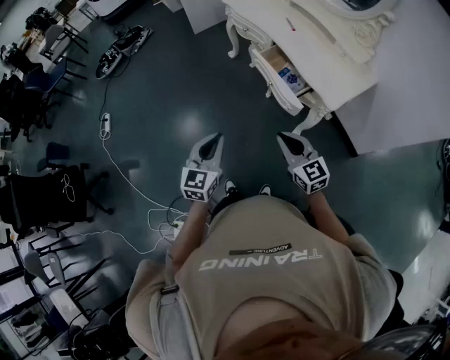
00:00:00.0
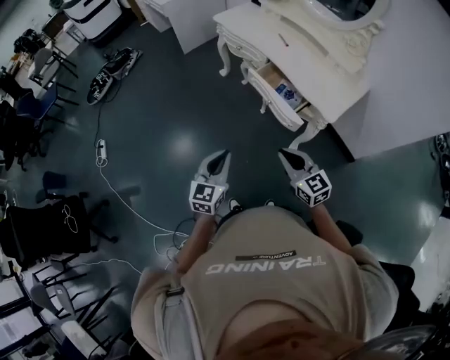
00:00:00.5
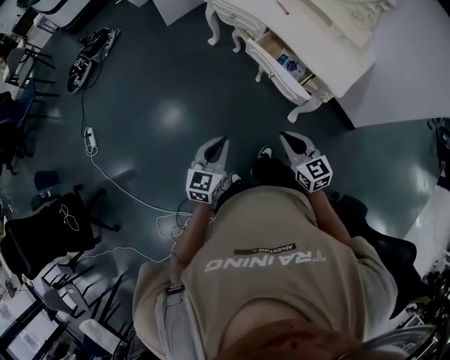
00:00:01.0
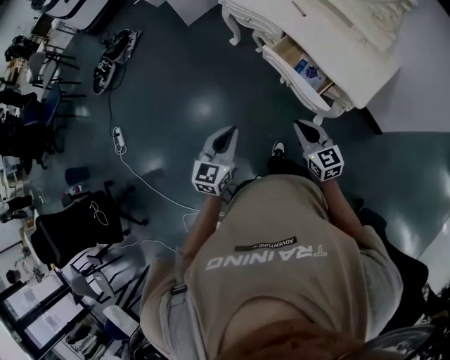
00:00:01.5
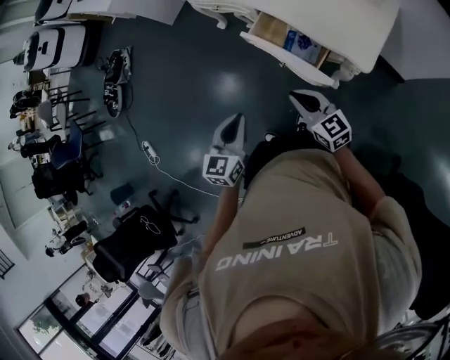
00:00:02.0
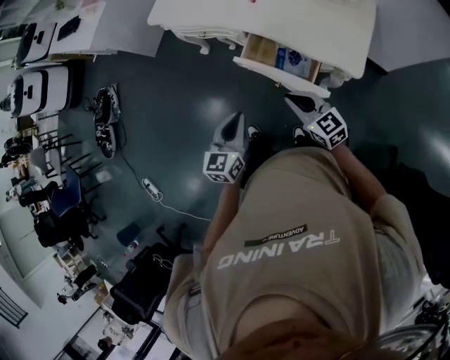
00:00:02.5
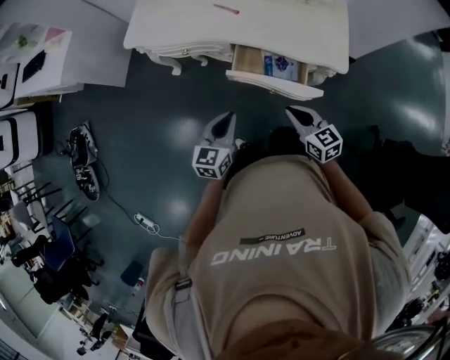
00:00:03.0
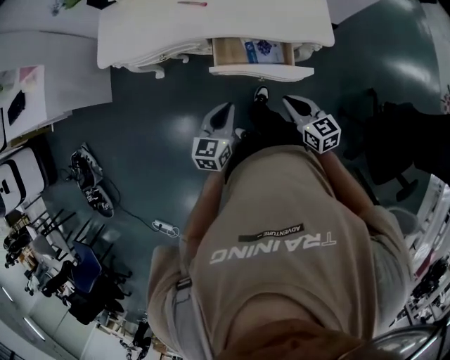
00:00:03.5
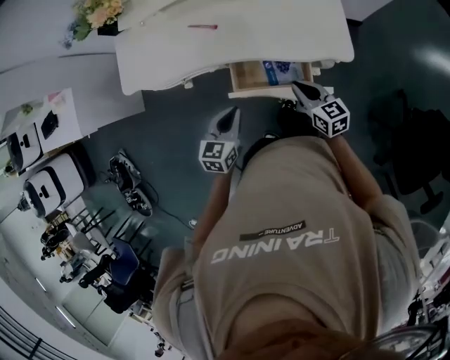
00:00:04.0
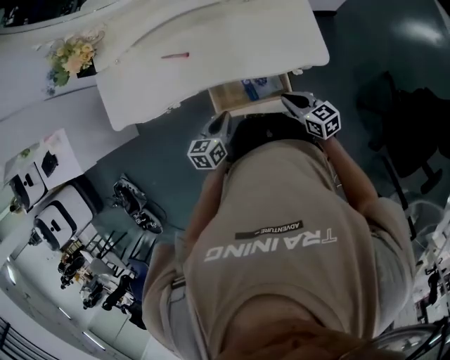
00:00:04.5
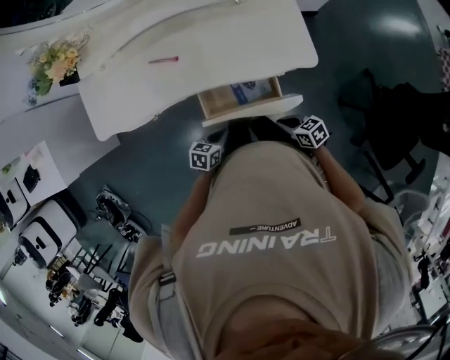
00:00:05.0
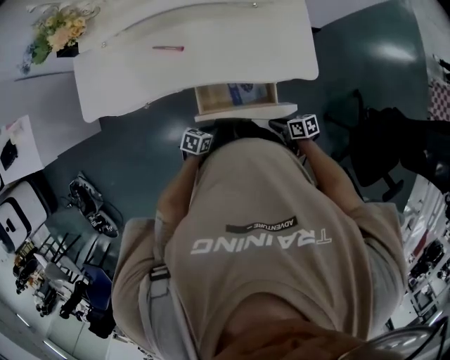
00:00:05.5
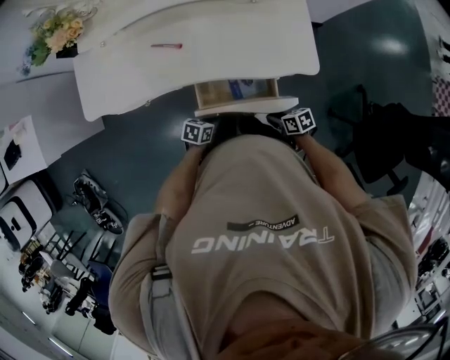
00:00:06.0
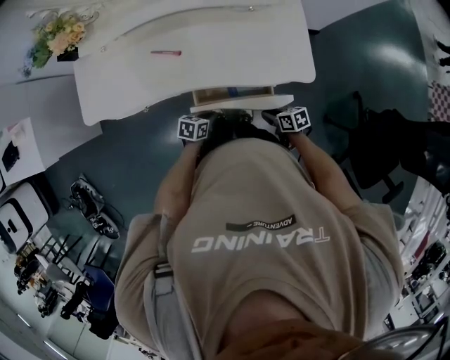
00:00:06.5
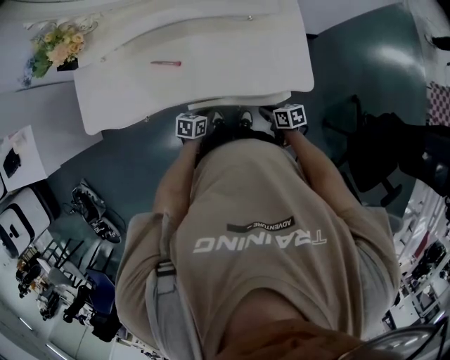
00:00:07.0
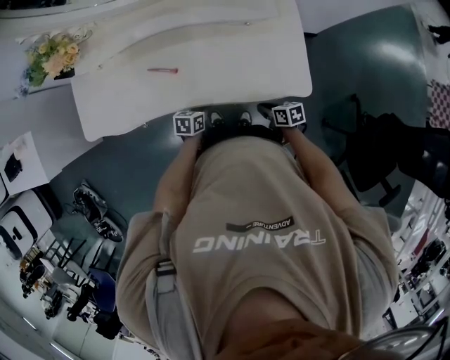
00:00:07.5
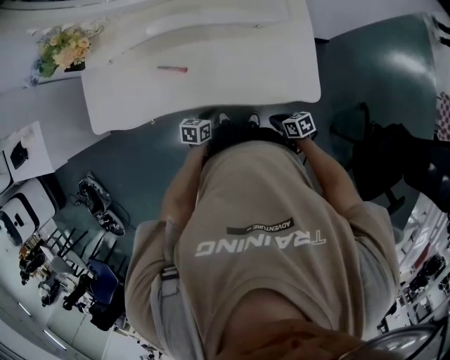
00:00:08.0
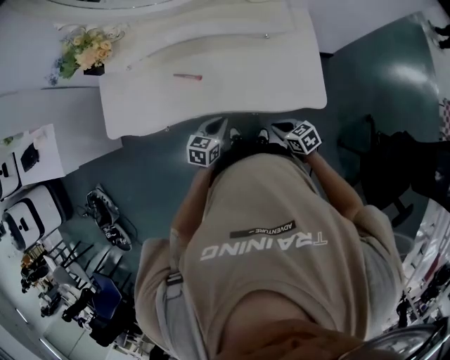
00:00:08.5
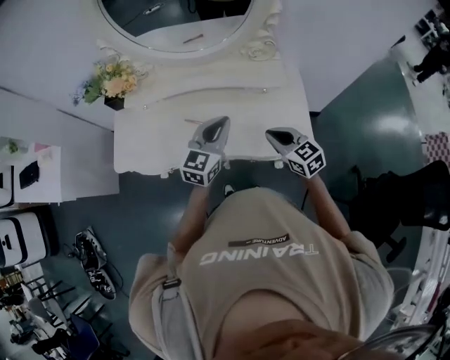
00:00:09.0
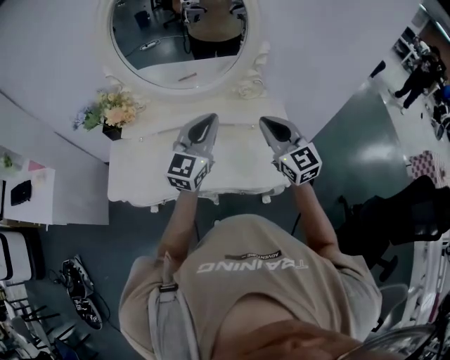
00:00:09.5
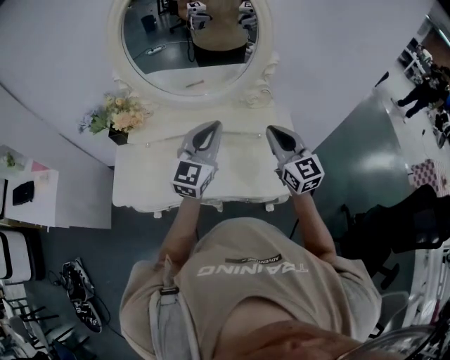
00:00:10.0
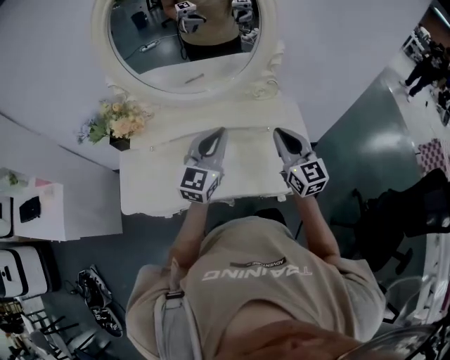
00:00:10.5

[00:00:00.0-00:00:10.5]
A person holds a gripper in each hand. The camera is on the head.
00:00:00.0 to 00:00:02.0: The left gripper moves forward, approximately 25 cm, and turns by about 20 degrees. The right gripper shifts roughly 25 cm forward and downward, and turns by some 20 degrees.
00:00:02.0 to 00:00:04.0: The right gripper moves about 20 cm, and rotates some 50 degrees. The left gripper moves some 30 cm, and changes its angle by approximately 40 degrees.
00:00:04.0 to 00:00:06.5: Both grippers travel together downward, roughly 15 cm. The left gripper swivels some 40 degrees. Meanwhile the right gripper turns by approximately 40 degrees.
00:00:06.5 to 00:00:08.5: The right gripper travels upward by some 10 cm, and rotates roughly 20 degrees. Meanwhile the left gripper travels upward by about 15 cm, and turns by some 20 degrees.
00:00:08.5 to 00:00:10.5: The grippers both shift upward and forward by roughly 40 cm. The right gripper tips its fingers upward by roughly 40 degrees; the left gripper angles its fingers upward, by some 40 degrees.

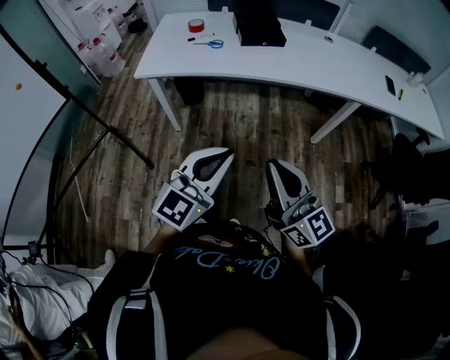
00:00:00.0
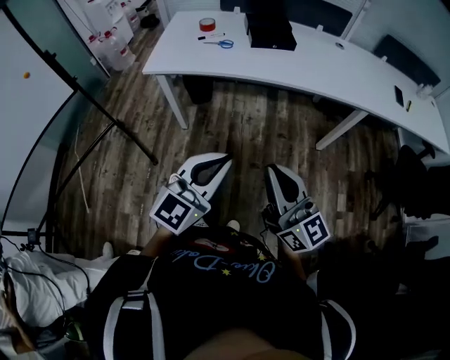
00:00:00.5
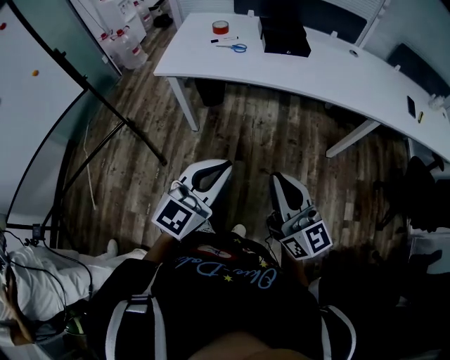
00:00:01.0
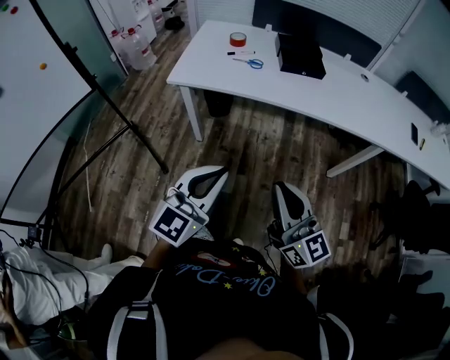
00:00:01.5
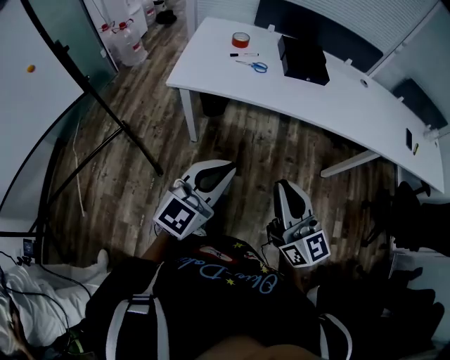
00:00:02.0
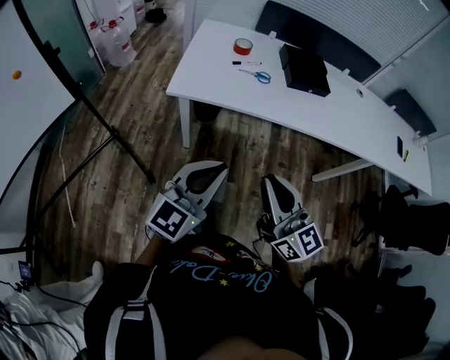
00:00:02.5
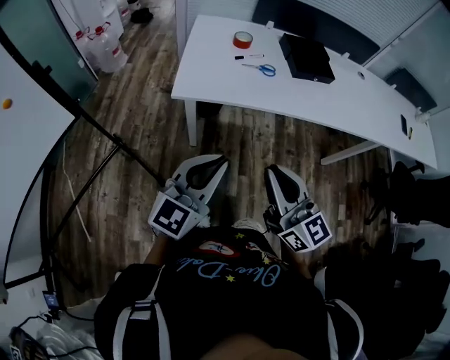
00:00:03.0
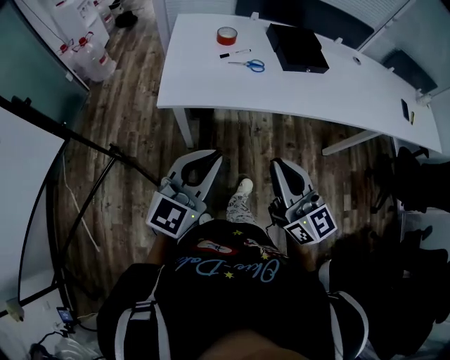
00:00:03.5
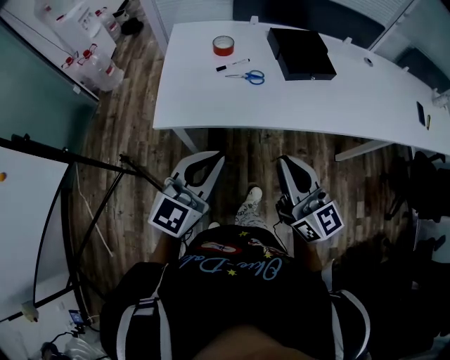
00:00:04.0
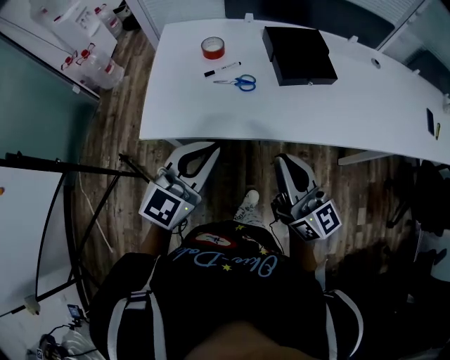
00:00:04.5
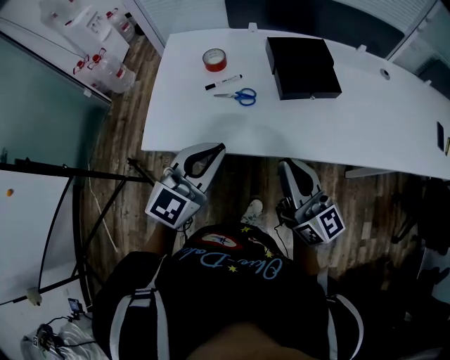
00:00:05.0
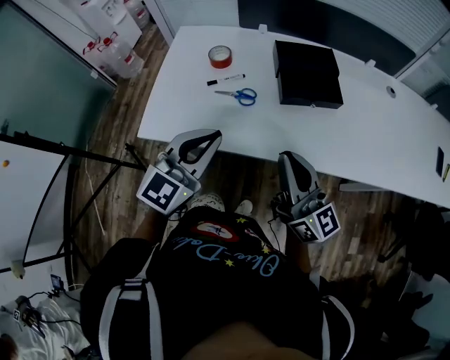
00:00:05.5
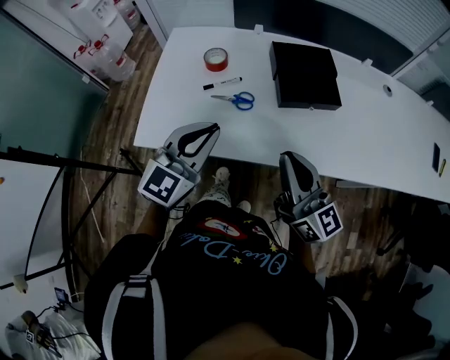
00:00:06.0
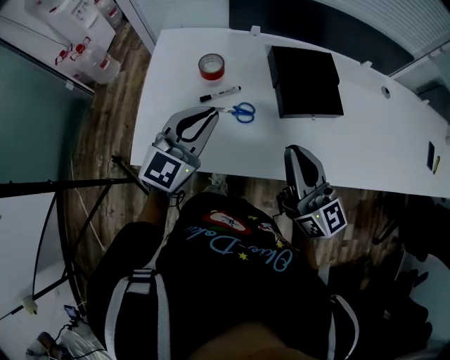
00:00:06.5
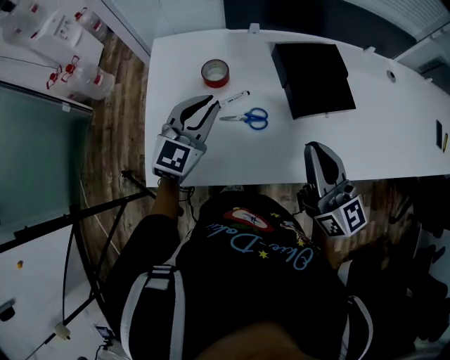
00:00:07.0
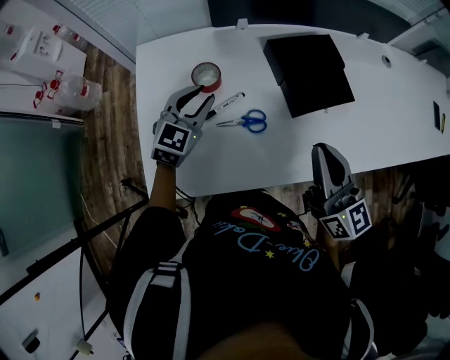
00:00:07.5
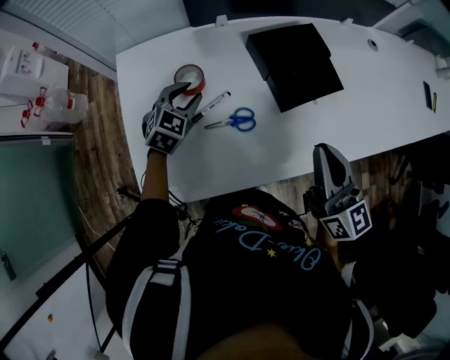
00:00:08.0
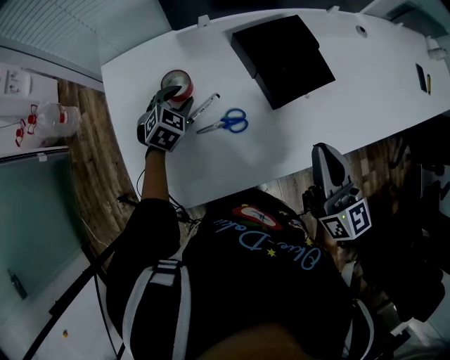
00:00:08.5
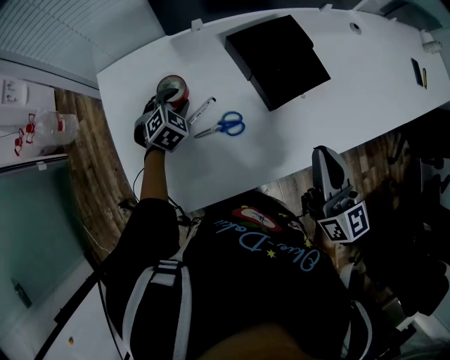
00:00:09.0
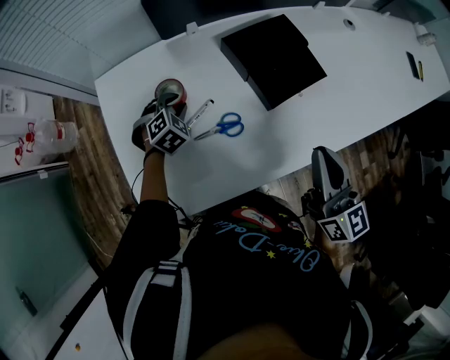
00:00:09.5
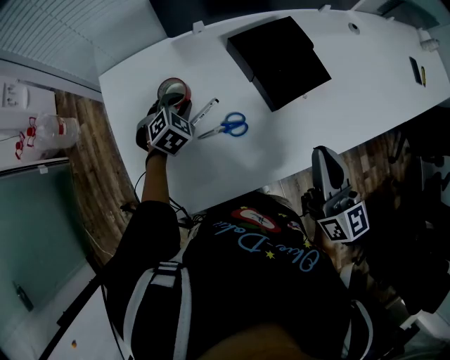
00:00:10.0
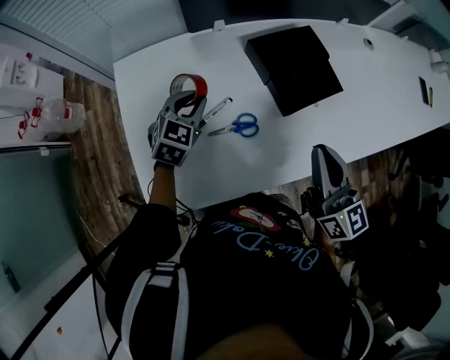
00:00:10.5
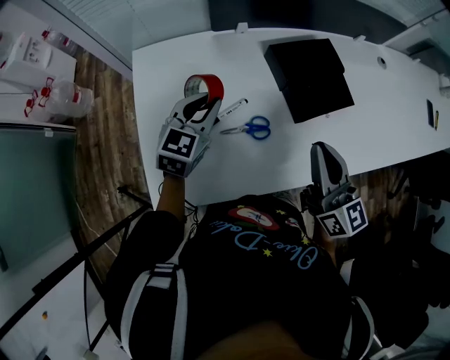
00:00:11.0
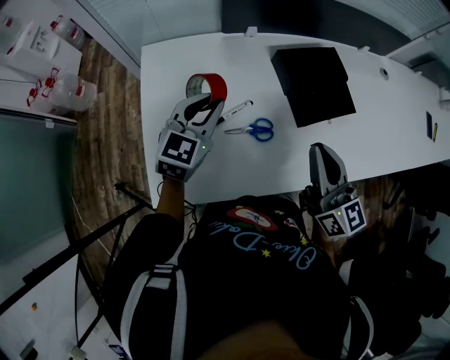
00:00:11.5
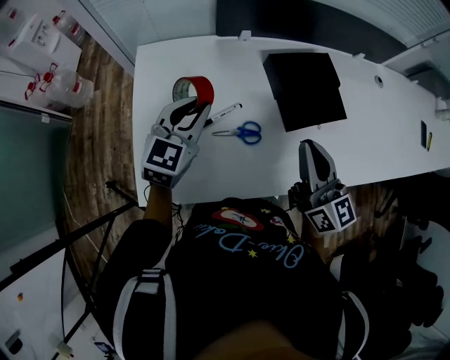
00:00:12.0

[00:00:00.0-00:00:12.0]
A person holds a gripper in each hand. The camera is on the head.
00:00:00.0 to 00:00:02.0: Both grippers travel together to the left and forward, approximately 15 cm.
00:00:02.0 to 00:00:04.0: The left gripper is displaced forward and to the left by some 20 cm, while the right gripper shifts roughly 20 cm forward.
00:00:04.0 to 00:00:06.0: The grippers both shift forward and to the right by roughly 20 cm.
00:00:06.0 to 00:00:08.0: The left gripper travels forward and downward by some 30 cm, rotates about 30 degrees, and opens up, while the right gripper heads forward, covering approximately 10 cm, and turns by some 30 degrees.
00:00:10.0 to 00:00:12.0: The left gripper goes about 15 cm upward and backward, and tips its fingers upward by approximately 30 degrees. Meanwhile the right gripper travels to the left by some 5 cm.

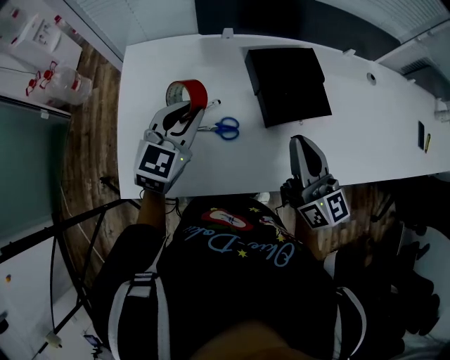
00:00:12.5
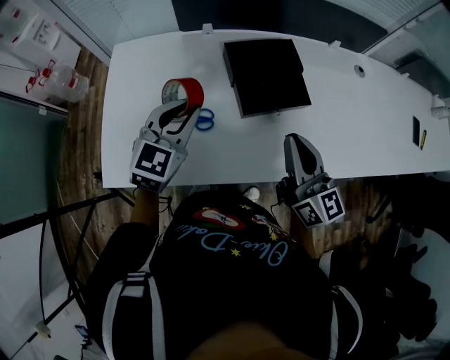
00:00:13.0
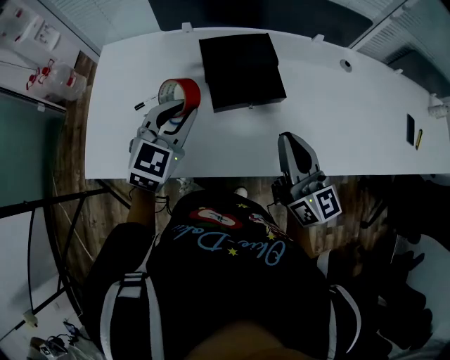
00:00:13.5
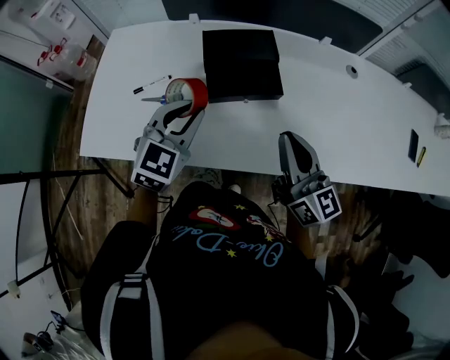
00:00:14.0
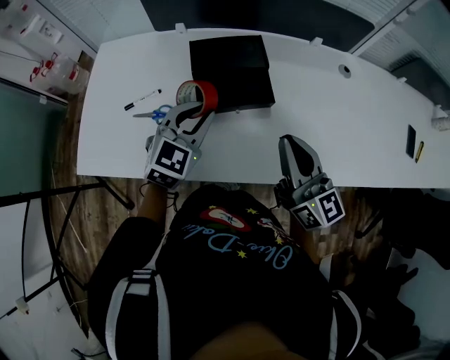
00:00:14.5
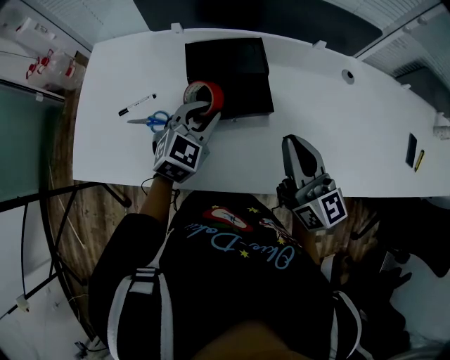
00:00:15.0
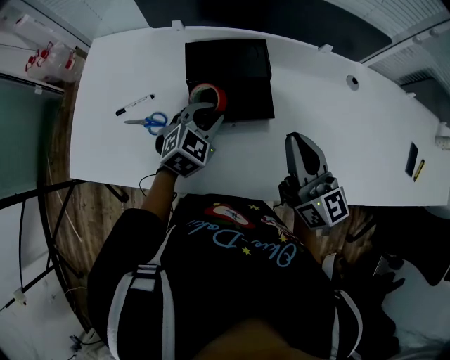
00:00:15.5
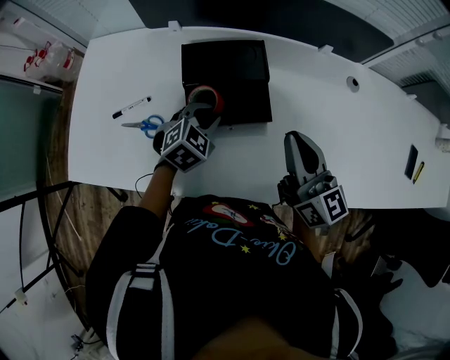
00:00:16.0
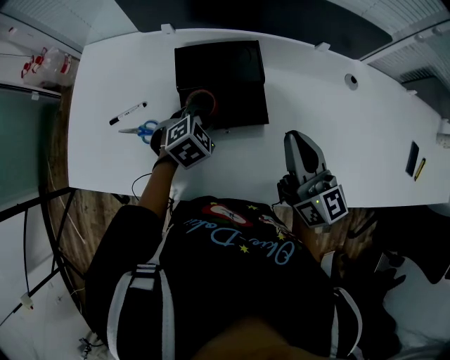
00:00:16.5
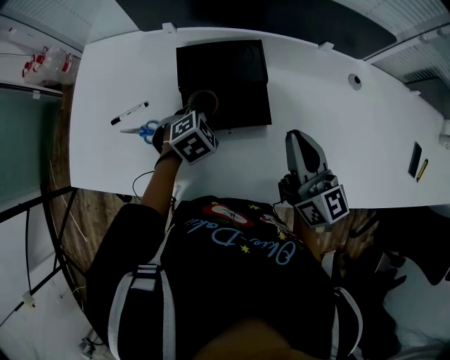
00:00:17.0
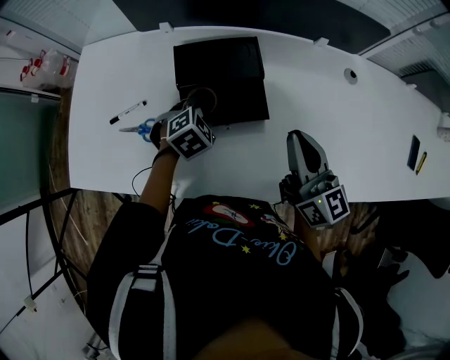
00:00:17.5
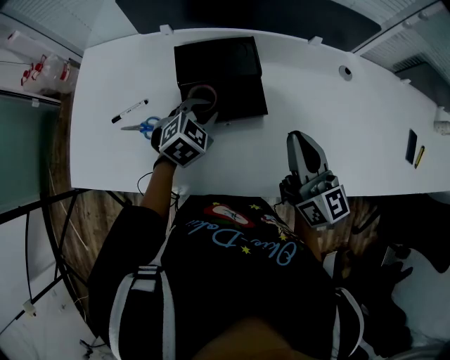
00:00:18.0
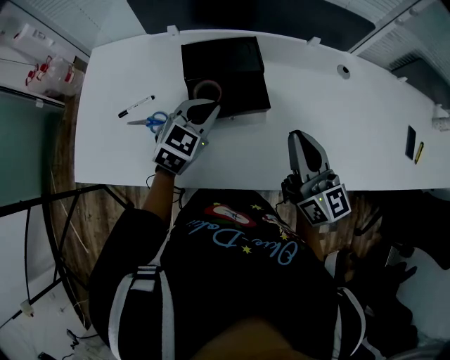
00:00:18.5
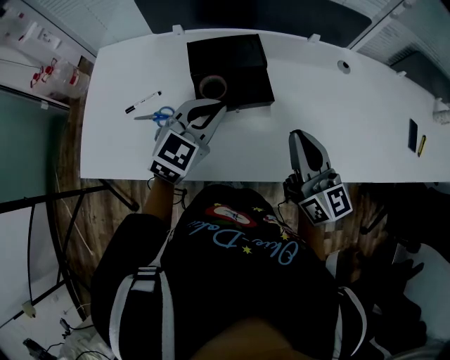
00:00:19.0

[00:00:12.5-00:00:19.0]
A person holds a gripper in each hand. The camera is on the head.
00:00:12.5 to 00:00:14.5: The two grippers go roughly 20 cm to the right.
00:00:14.5 to 00:00:17.0: The left gripper goes approximately 15 cm downward and forward, and tilts its fingers roughly 40 degrees downward. Meanwhile the right gripper heads forward, covering about 10 cm.
00:00:17.0 to 00:00:19.0: The right gripper heads backward, covering approximately 10 cm. The left gripper travels upward and backward by about 20 cm, and points its fingers about 40 degrees further upward.
